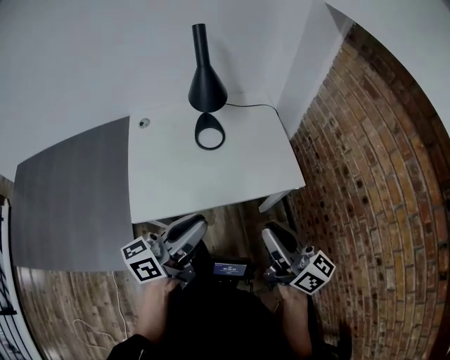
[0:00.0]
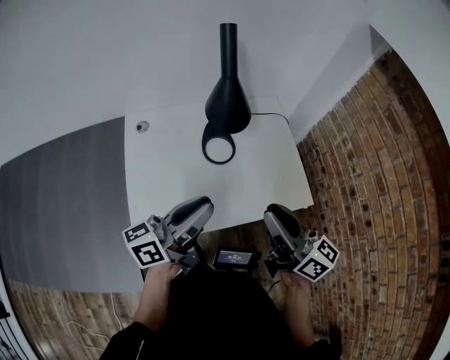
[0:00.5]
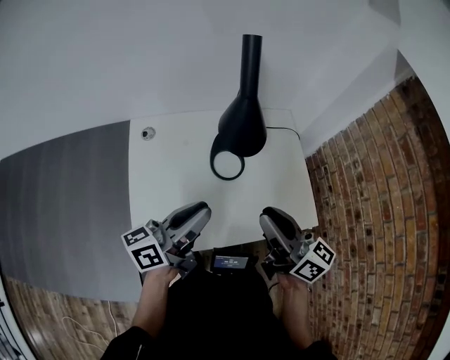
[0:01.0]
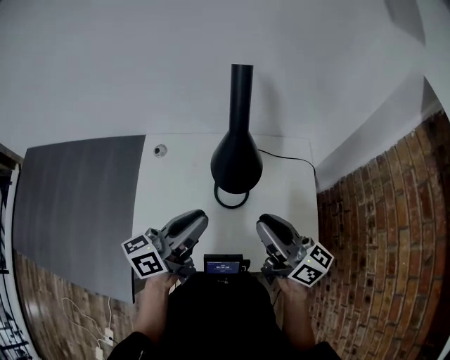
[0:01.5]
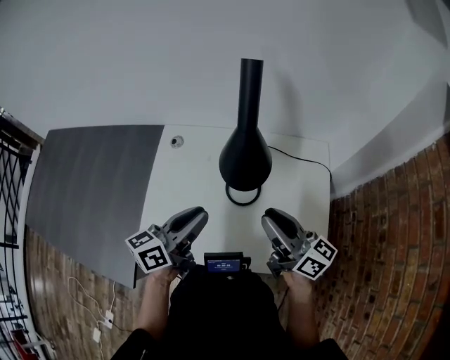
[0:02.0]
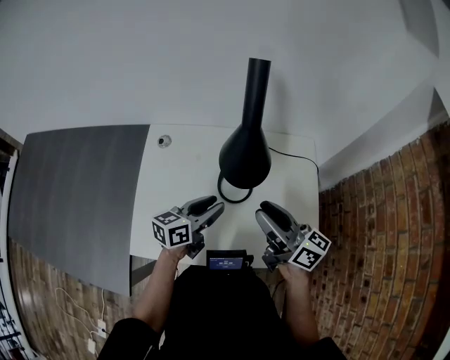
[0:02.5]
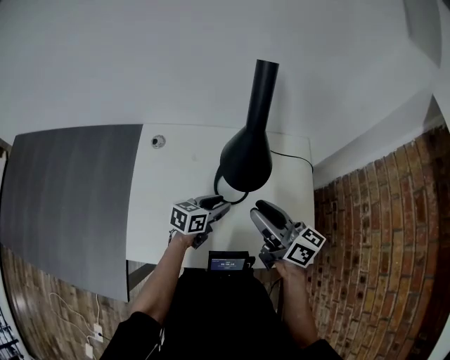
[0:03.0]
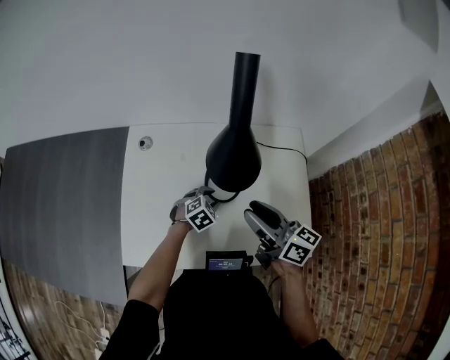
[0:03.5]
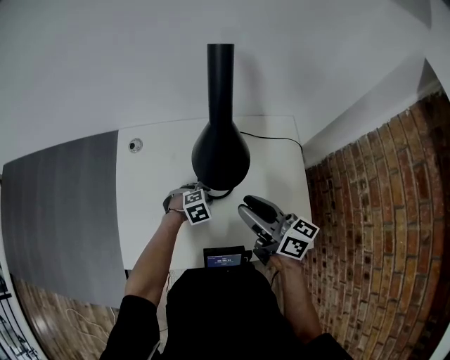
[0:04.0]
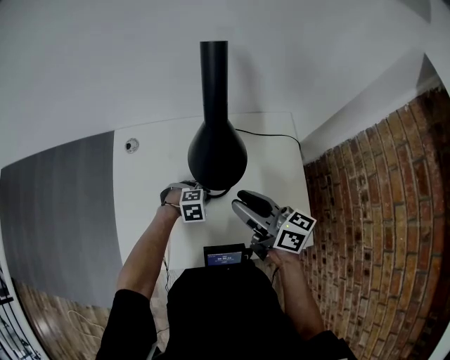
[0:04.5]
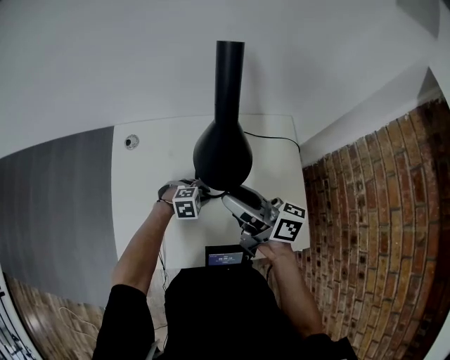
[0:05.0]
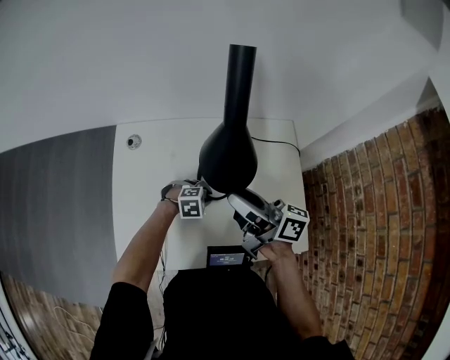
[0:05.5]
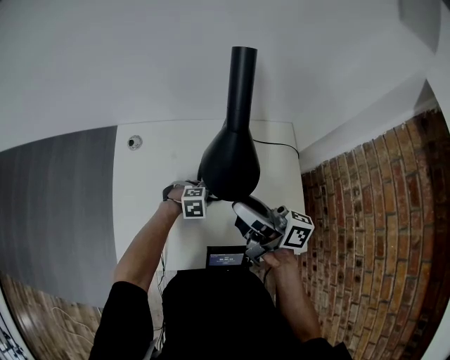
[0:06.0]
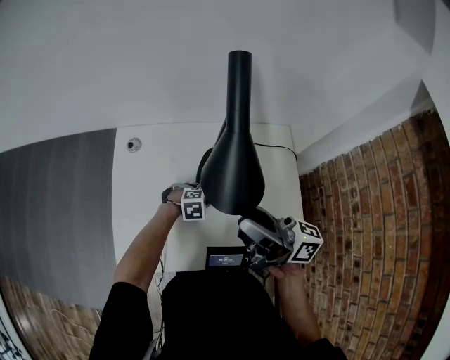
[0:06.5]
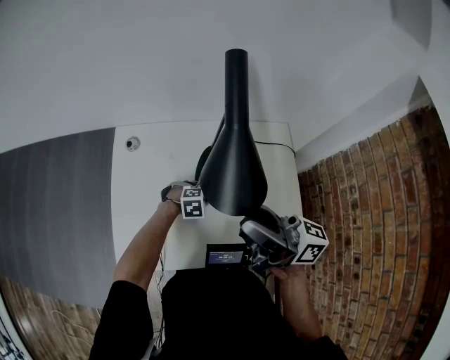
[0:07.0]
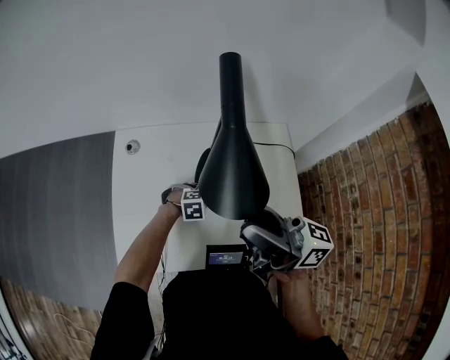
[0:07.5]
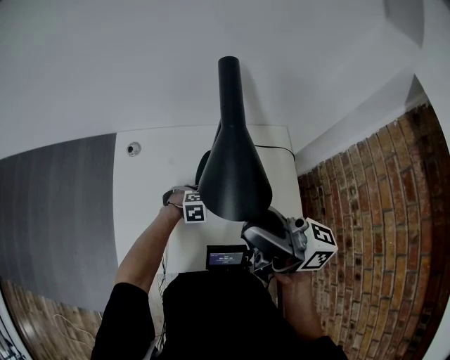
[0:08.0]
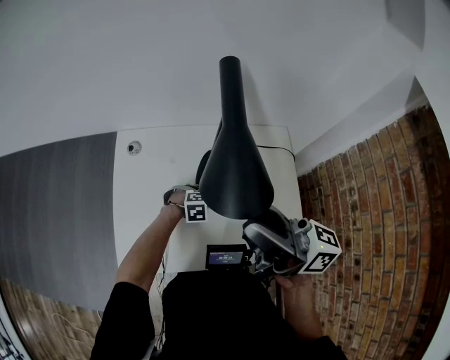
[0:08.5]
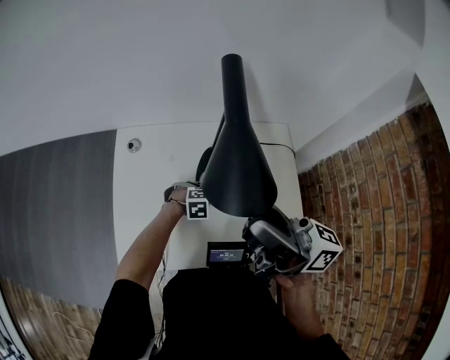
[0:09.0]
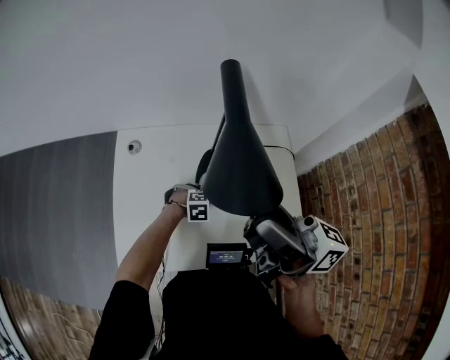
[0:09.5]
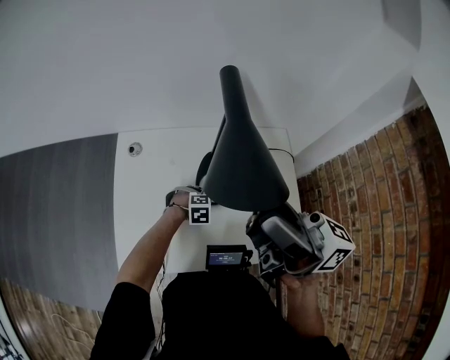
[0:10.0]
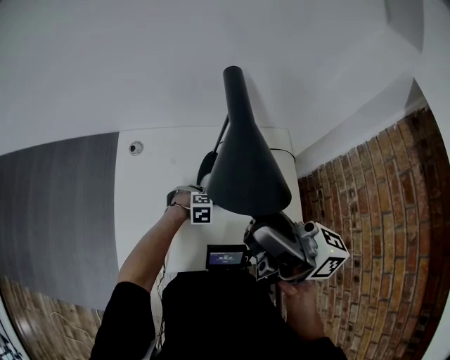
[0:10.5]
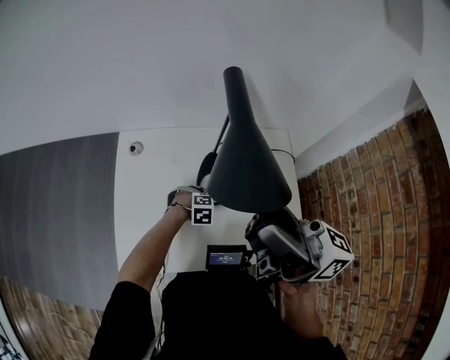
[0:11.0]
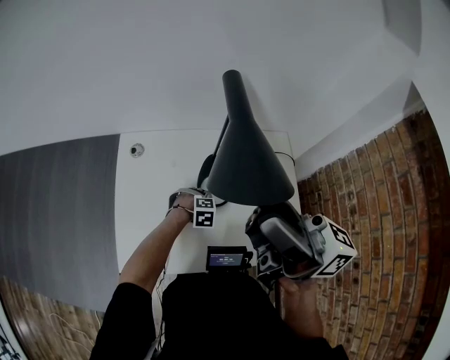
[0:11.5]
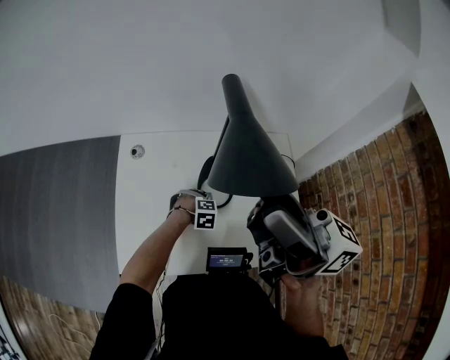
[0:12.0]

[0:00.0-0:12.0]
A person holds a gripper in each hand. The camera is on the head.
0:00.0 to 0:02.0: The two grippers go approximately 30 cm forward. The right gripper turns by approximately 30 degrees; the left gripper rotates approximately 30 degrees.
0:02.0 to 0:04.0: The left gripper shifts approximately 30 cm downward, and angles its fingers downward, by approximately 60 degrees. Meanwhile the right gripper travels downward by roughly 5 cm.
0:04.0 to 0:06.0: The right gripper travels upward by roughly 5 cm, and turns by approximately 20 degrees.
0:06.0 to 0:08.0: The right gripper heads upward, covering some 10 cm.
0:08.0 to 0:10.0: The right gripper goes roughly 5 cm upward.
0:10.0 to 0:12.0: The grippers move only a little.

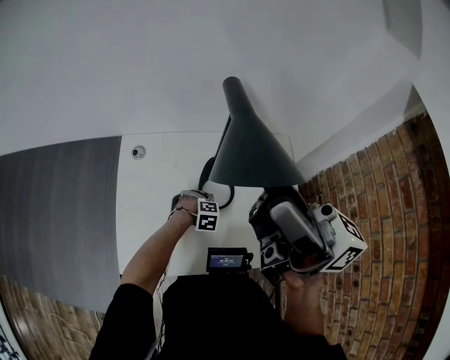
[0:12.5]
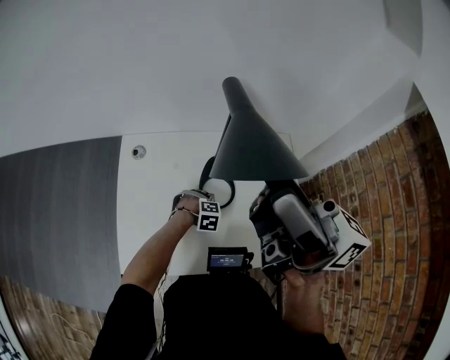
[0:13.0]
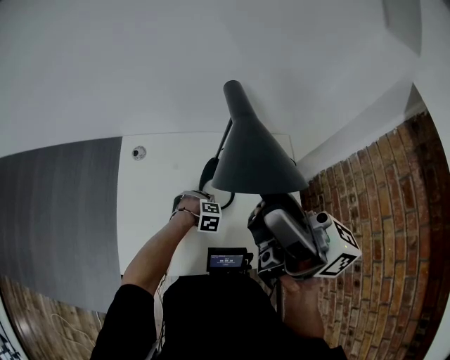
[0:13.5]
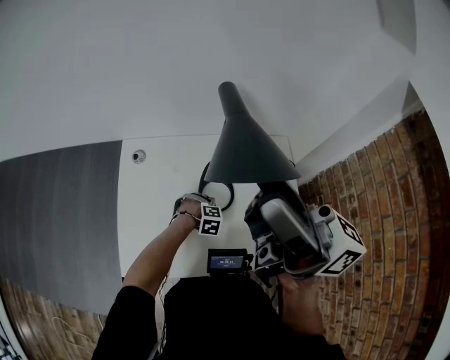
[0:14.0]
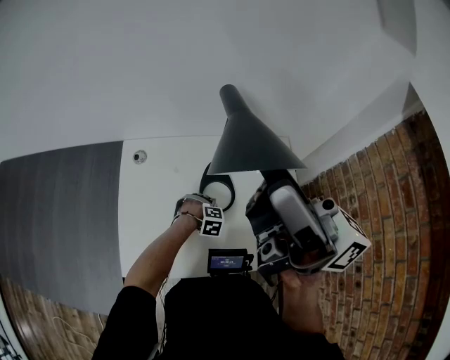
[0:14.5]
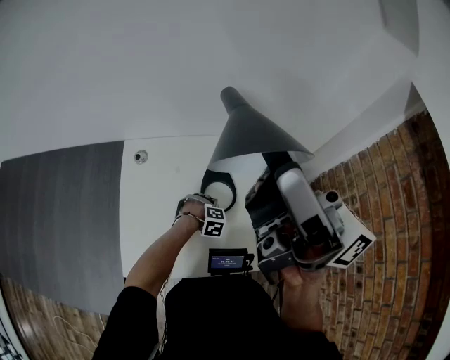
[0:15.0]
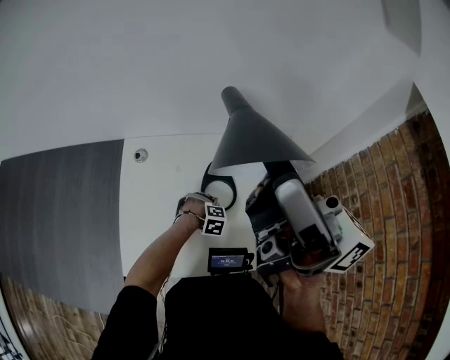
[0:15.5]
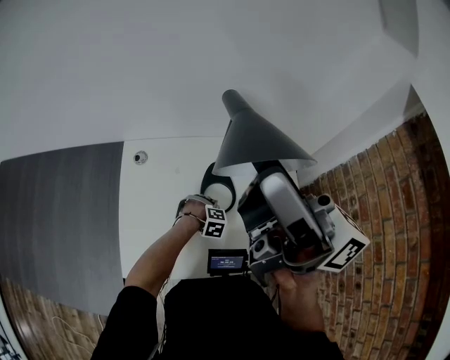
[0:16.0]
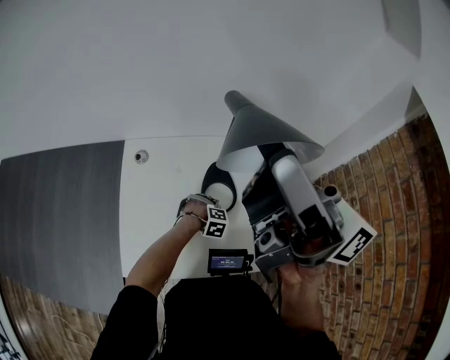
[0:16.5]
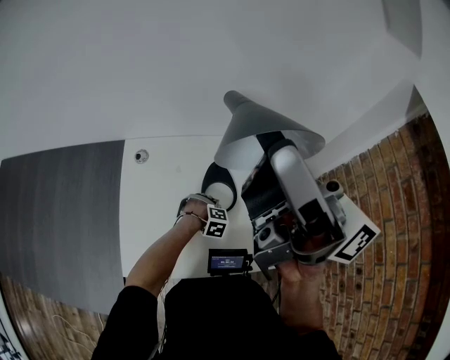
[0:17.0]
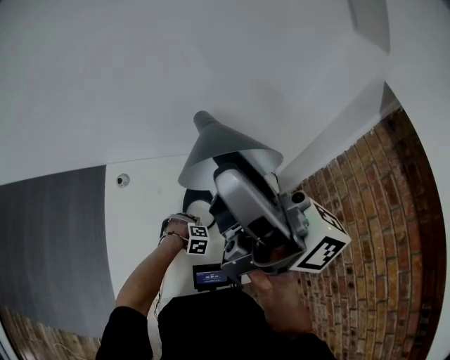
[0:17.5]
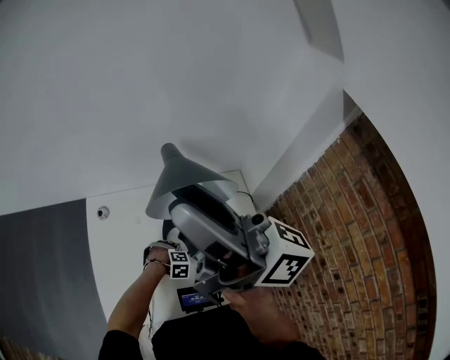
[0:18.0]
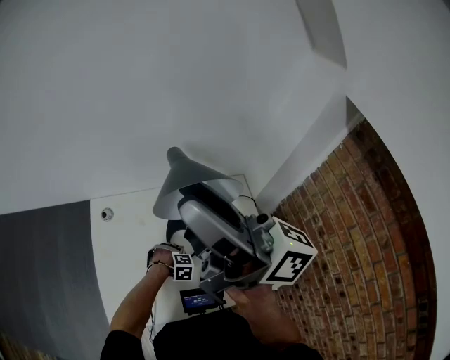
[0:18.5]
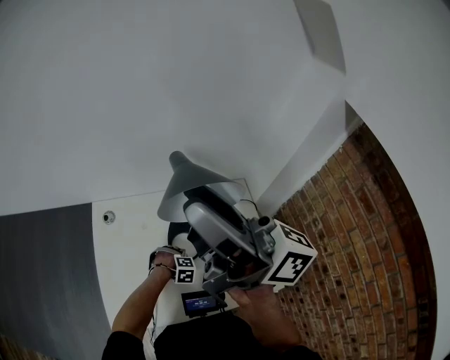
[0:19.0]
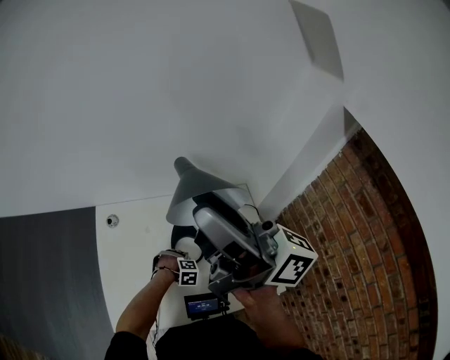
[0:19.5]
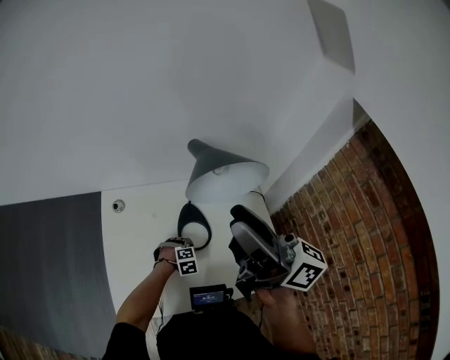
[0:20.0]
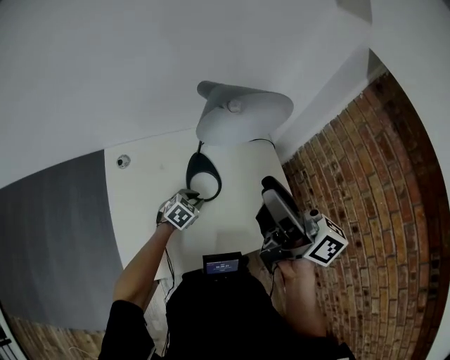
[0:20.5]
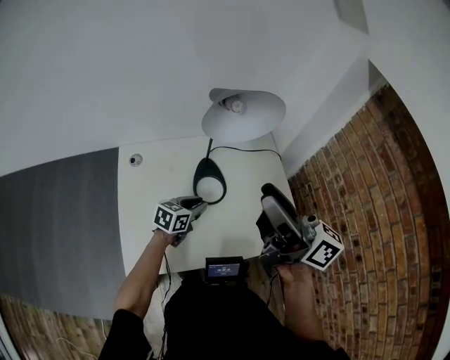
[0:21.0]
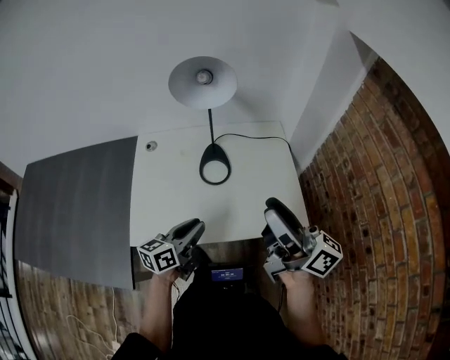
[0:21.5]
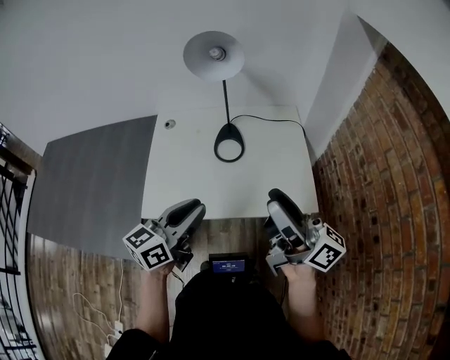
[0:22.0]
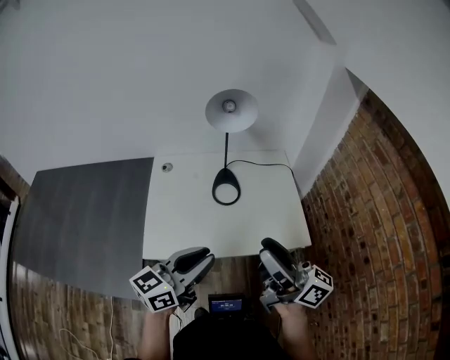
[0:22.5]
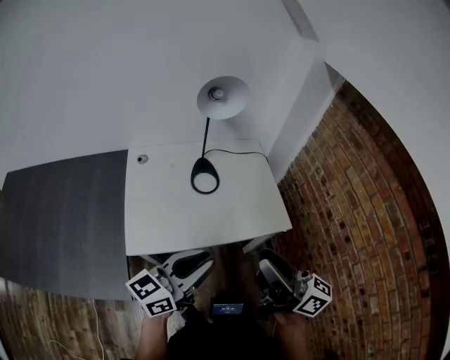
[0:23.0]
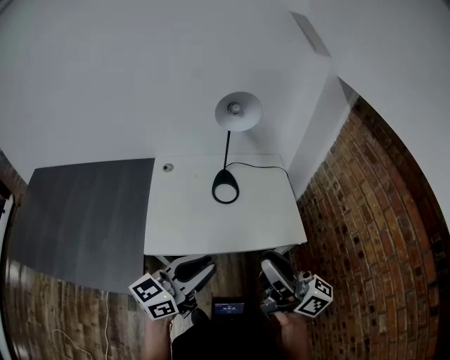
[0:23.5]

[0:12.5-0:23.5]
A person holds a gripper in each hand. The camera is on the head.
0:12.5 to 0:16.0: The grippers make only small movements.
0:16.0 to 0:18.0: The grippers move only a little.
0:18.0 to 0:20.0: The right gripper is displaced downward by approximately 10 cm.
0:20.0 to 0:21.5: The right gripper moves backward, to the right and downward, roughly 25 cm, while the left gripper goes roughly 30 cm upward and backward, and tilts its fingers approximately 60 degrees upward.
0:21.5 to 0:23.5: The left gripper goes roughly 25 cm backward and upward, and swivels about 20 degrees, while the right gripper travels backward by some 15 cm, and closes up.

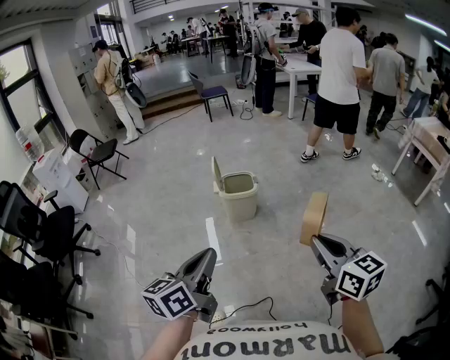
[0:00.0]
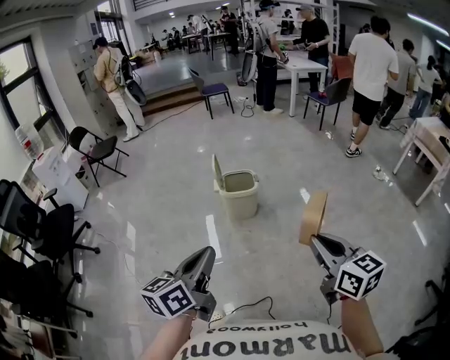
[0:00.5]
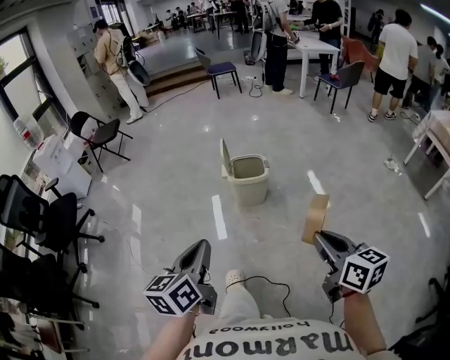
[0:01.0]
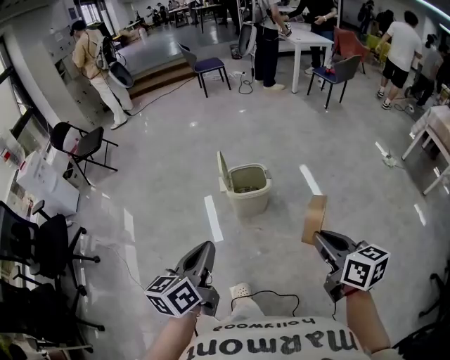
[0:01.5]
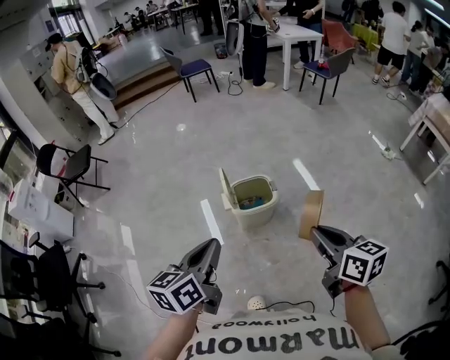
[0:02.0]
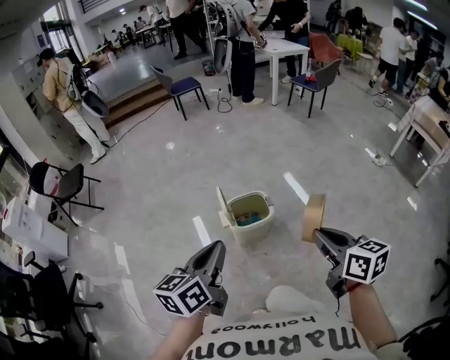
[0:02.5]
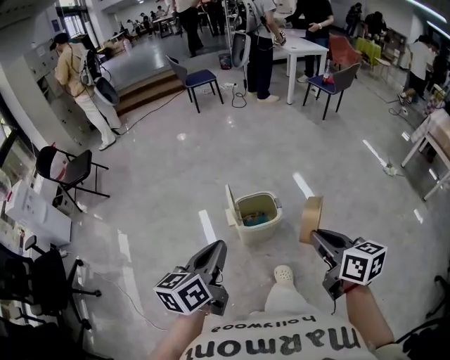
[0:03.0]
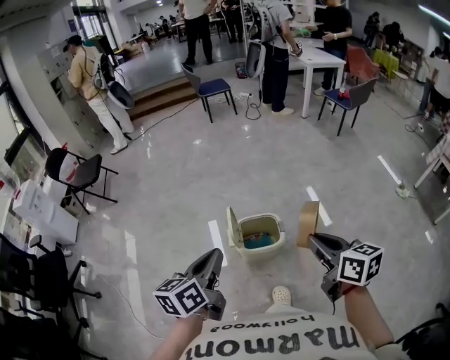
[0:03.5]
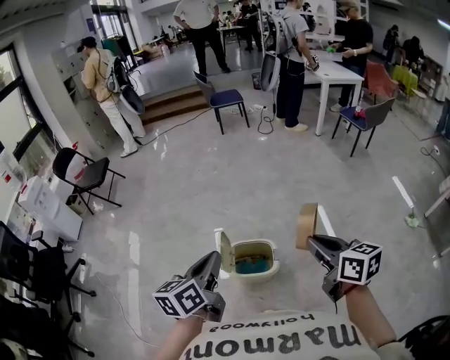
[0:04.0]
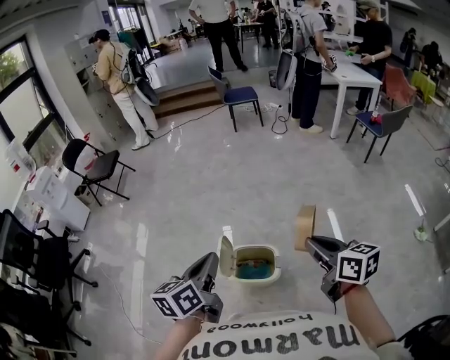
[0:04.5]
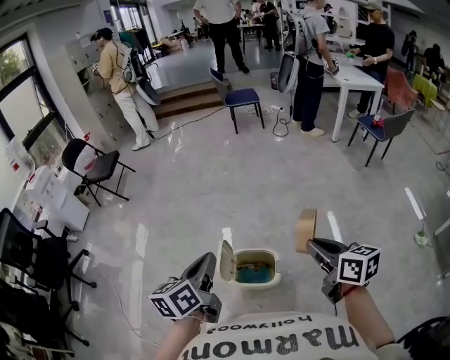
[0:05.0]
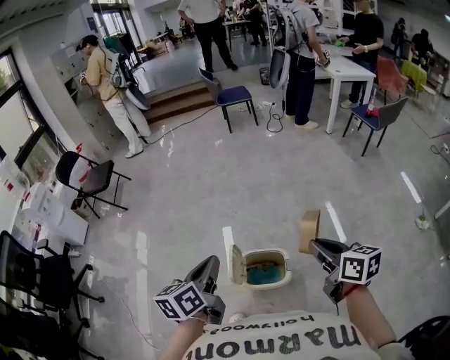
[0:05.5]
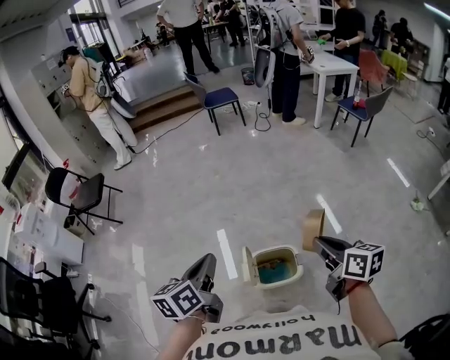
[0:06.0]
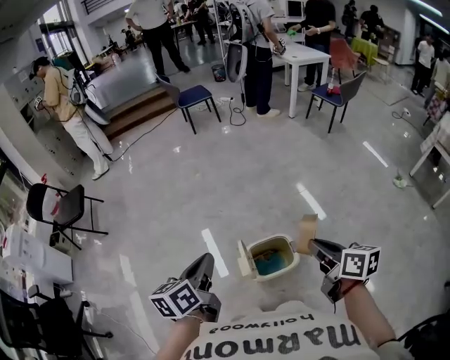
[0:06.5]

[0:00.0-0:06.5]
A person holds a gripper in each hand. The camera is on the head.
0:00.0 to 0:02.0: The left gripper heads forward, covering approximately 35 cm. Meanwhile the right gripper travels forward and to the left by roughly 30 cm.
0:02.0 to 0:04.5: The right gripper shifts by approximately 35 cm, and changes its angle by about 20 degrees, while the left gripper moves approximately 25 cm, and turns by about 20 degrees.
0:04.5 to 0:06.5: The right gripper is displaced to the left by approximately 10 cm, and changes its angle by some 30 degrees; the left gripper travels to the left and forward by some 15 cm.
